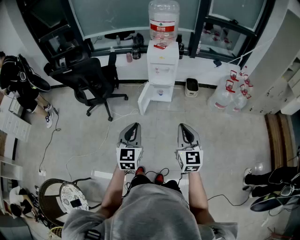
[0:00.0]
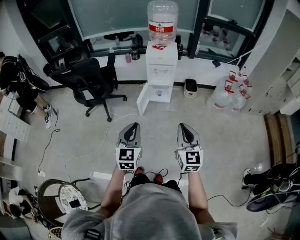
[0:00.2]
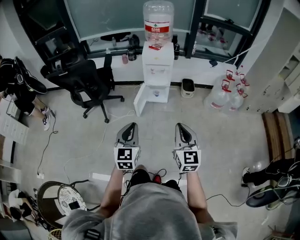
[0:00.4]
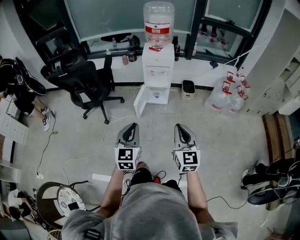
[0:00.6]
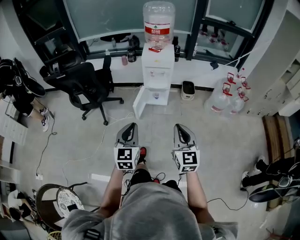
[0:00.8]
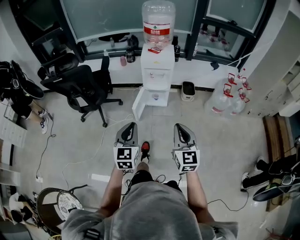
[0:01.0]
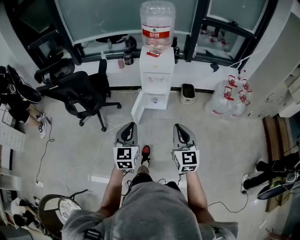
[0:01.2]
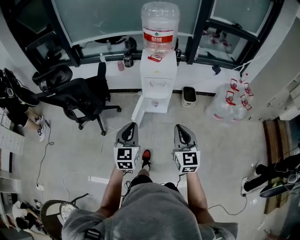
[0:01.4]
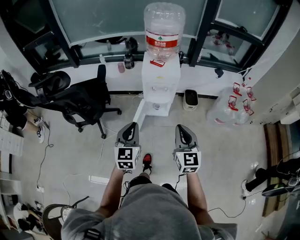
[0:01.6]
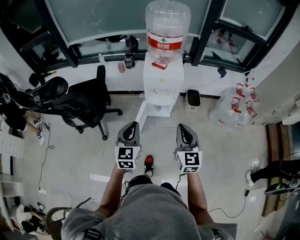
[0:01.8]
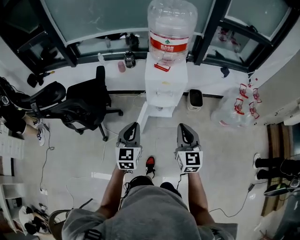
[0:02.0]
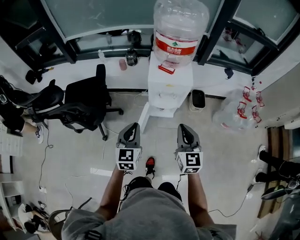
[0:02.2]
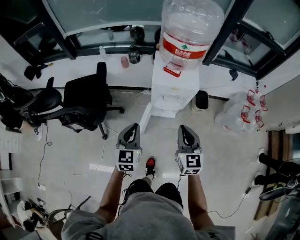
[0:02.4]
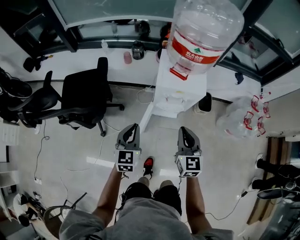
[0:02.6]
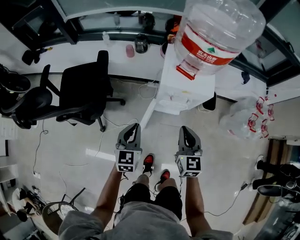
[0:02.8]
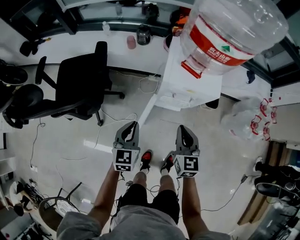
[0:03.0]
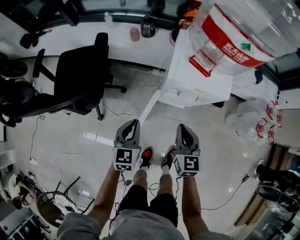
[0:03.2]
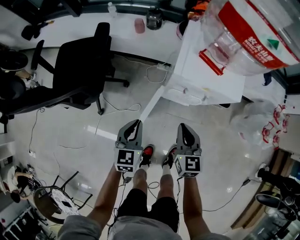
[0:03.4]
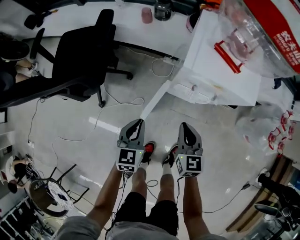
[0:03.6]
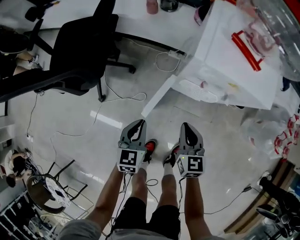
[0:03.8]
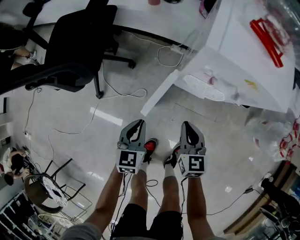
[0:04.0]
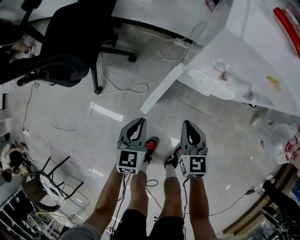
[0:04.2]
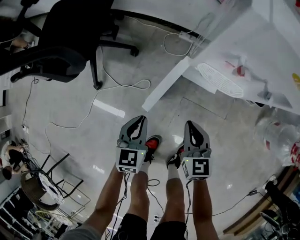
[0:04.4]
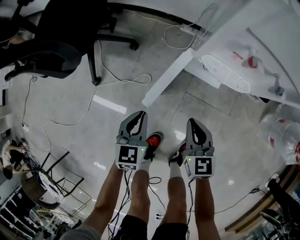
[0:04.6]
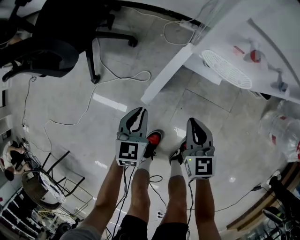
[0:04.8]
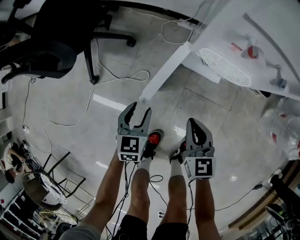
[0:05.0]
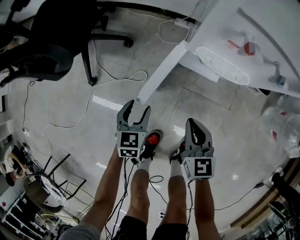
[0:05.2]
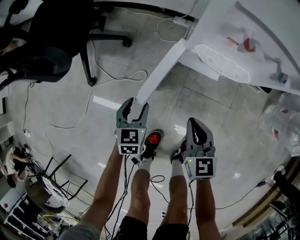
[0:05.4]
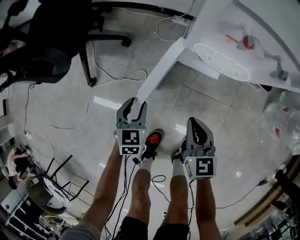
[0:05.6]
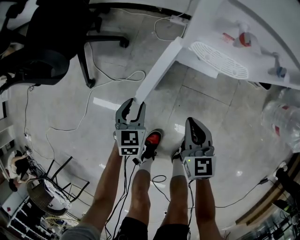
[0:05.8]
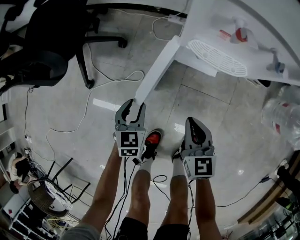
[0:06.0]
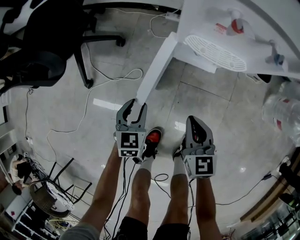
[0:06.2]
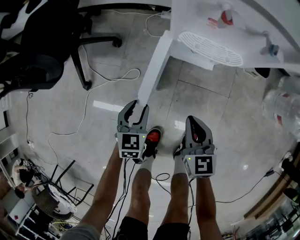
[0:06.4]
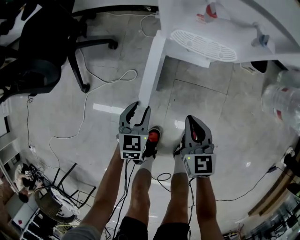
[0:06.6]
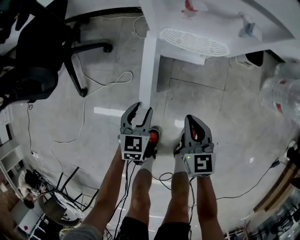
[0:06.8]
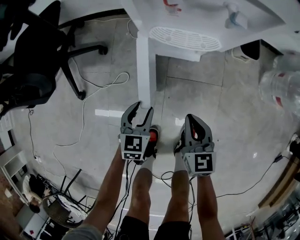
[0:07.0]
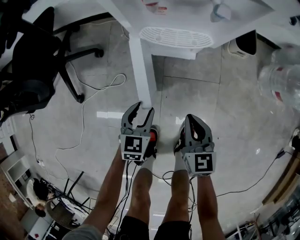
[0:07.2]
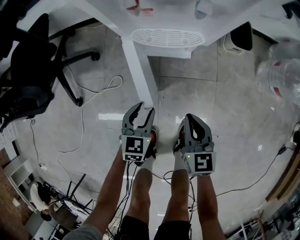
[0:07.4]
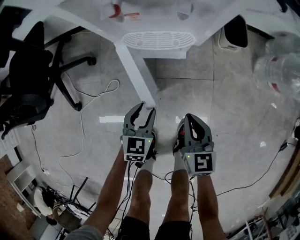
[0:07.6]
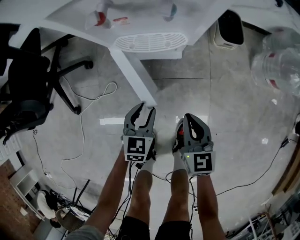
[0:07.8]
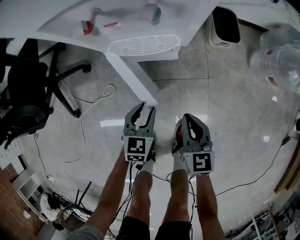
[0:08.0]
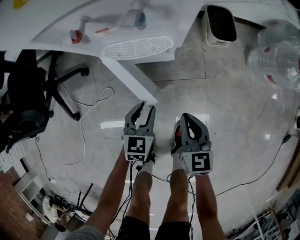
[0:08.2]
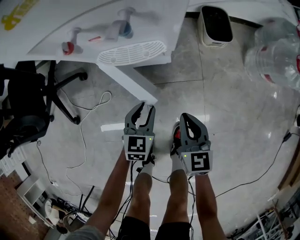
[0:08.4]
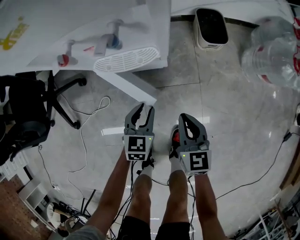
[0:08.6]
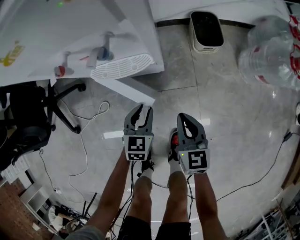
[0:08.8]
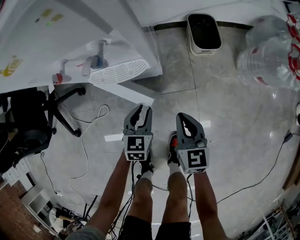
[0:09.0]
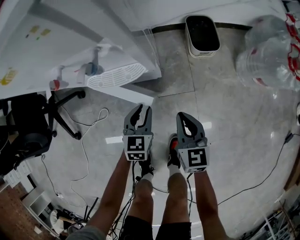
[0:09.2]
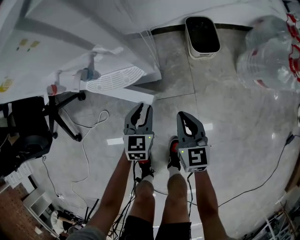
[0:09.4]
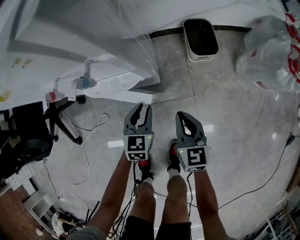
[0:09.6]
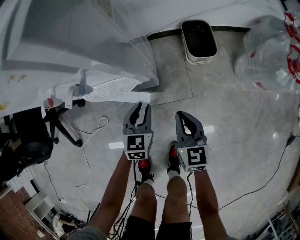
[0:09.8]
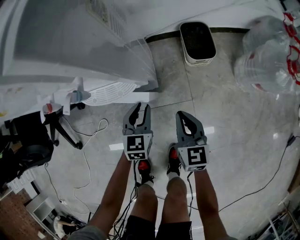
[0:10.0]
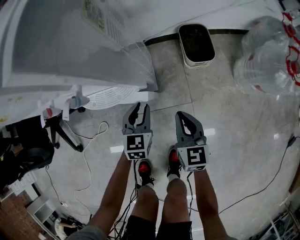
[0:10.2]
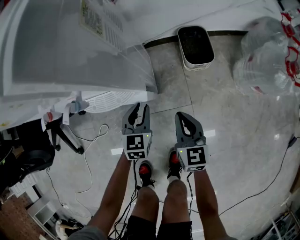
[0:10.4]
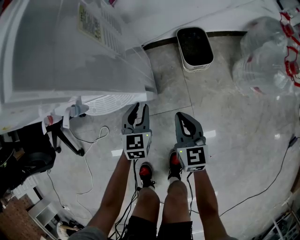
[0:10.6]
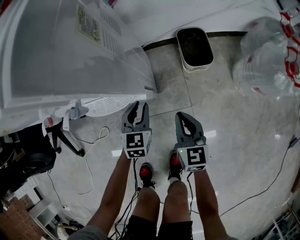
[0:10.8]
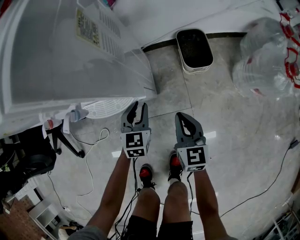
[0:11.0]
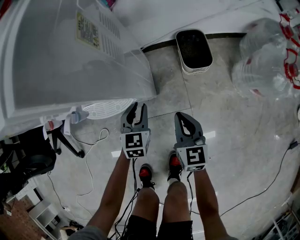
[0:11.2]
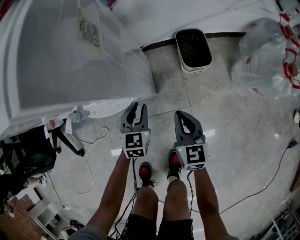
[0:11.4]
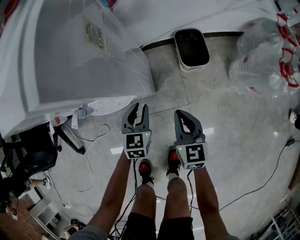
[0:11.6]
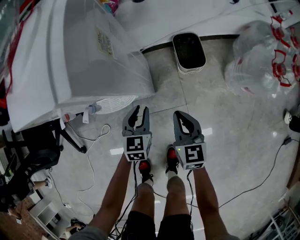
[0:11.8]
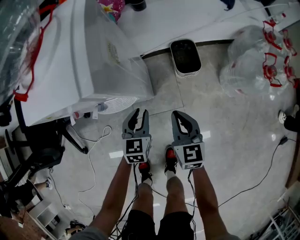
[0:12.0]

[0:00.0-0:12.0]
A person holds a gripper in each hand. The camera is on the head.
0:00.0 to 0:01.6: The grippers both shift forward by roughly 30 cm.
0:01.6 to 0:03.0: Both grippers travel together forward and downward, roughly 30 cm.
0:03.0 to 0:04.4: The grippers both shift downward by some 35 cm. The right gripper turns by some 20 degrees.
0:04.4 to 0:06.0: The right gripper ends up roughly 5 cm from where it was. Meanwhile the left gripper travels downward by approximately 10 cm, and opens.
0:06.0 to 0:07.6: The two grippers go approximately 15 cm to the right. The left gripper rotates some 20 degrees.
0:07.6 to 0:09.0: The grippers both shift to the right and forward by about 10 cm.
0:09.0 to 0:10.4: Both grippers move forward, approximately 10 cm.
0:10.4 to 0:12.0: The grippers both shift upward by roughly 10 cm.

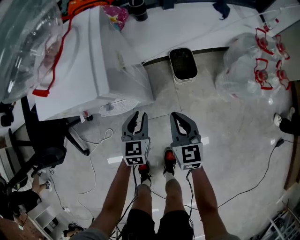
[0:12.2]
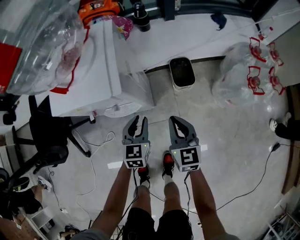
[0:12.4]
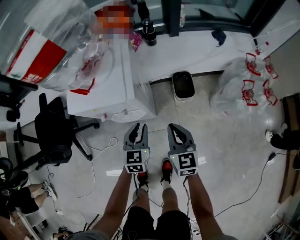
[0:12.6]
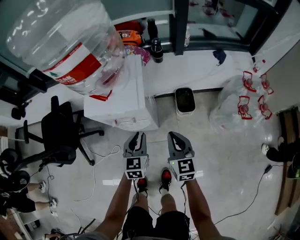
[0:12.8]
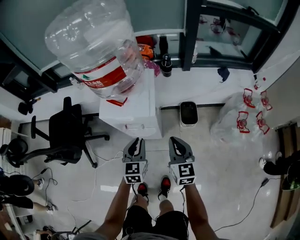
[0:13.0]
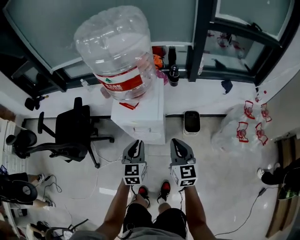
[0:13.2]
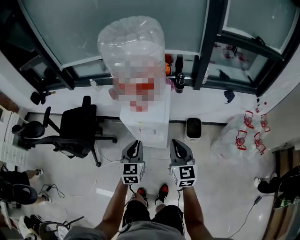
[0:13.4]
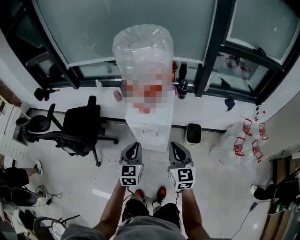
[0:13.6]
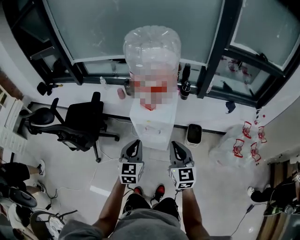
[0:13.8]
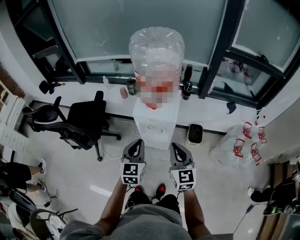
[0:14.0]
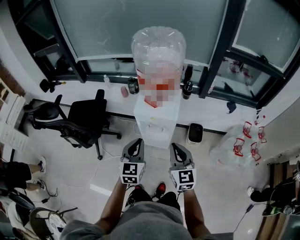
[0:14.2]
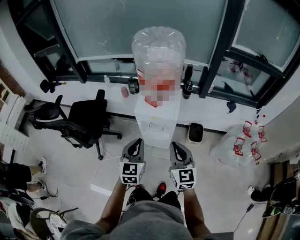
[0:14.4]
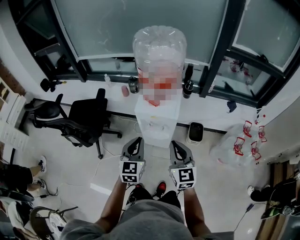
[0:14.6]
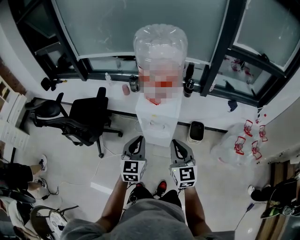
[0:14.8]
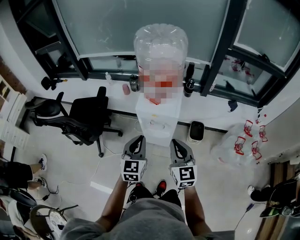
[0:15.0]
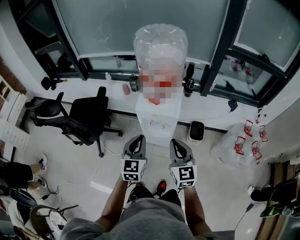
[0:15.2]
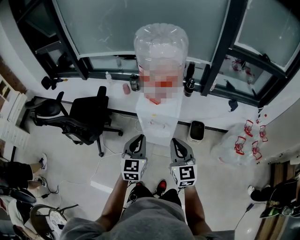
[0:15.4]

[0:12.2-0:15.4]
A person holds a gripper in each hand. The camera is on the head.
0:12.2 to 0:13.8: Both grippers move upward, some 40 cm. The left gripper turns by about 30 degrees. The right gripper changes its angle by roughly 20 degrees.
0:13.8 to 0:15.4: There are only small adjustments of the grippers.

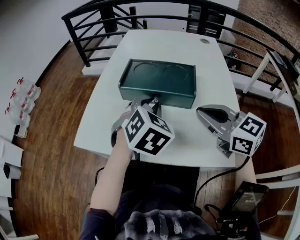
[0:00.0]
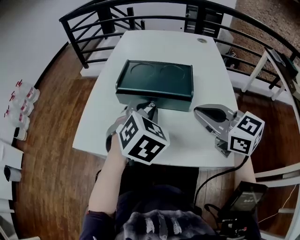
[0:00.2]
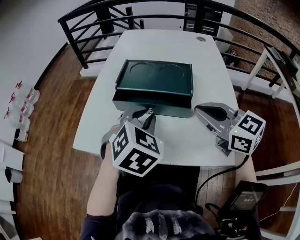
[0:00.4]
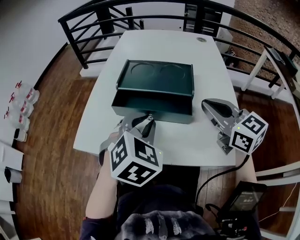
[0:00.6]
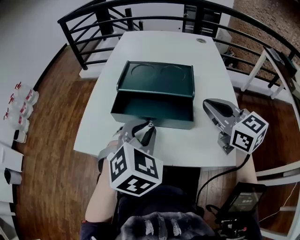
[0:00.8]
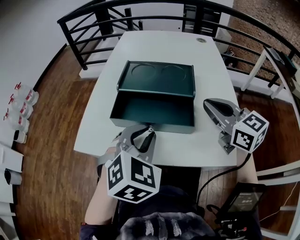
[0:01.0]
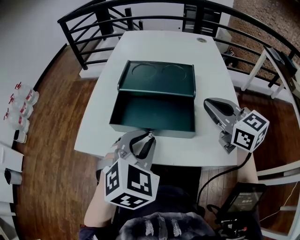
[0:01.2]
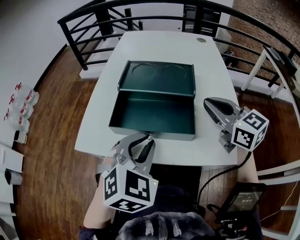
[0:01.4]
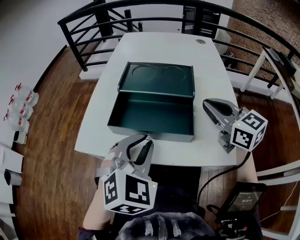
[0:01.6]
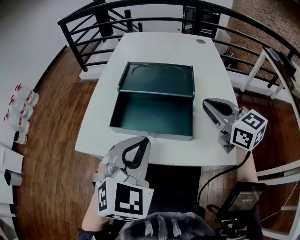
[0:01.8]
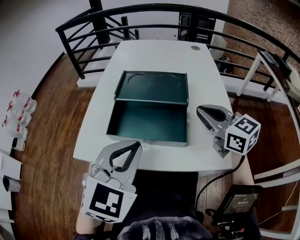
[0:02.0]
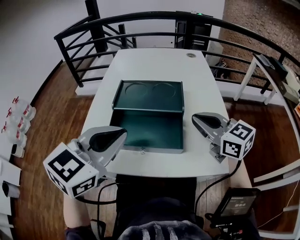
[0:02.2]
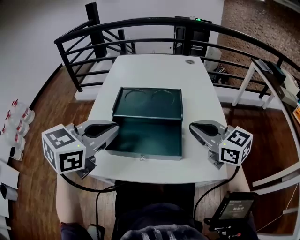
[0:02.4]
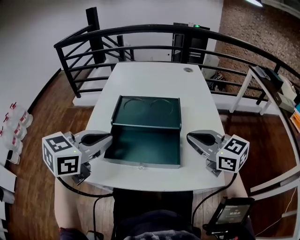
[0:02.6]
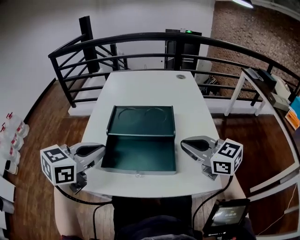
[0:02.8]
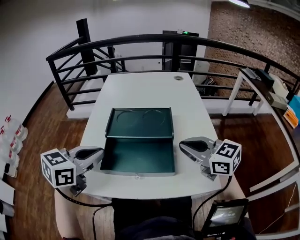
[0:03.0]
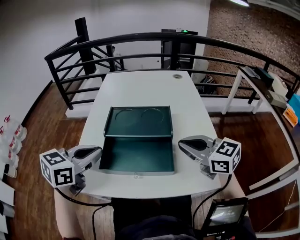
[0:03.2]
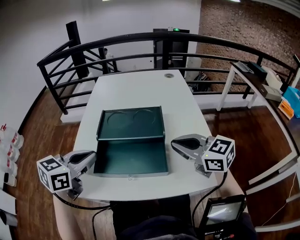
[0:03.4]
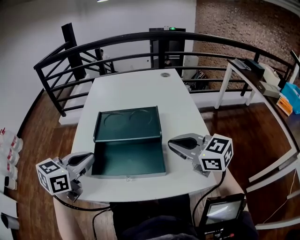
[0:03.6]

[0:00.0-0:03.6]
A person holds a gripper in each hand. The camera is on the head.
0:00.0 to 0:01.8: The left gripper is displaced backward by roughly 15 cm. The right gripper shifts by roughly 5 cm.
0:01.8 to 0:03.6: The left gripper goes roughly 15 cm to the left and forward, and changes its angle by roughly 40 degrees.

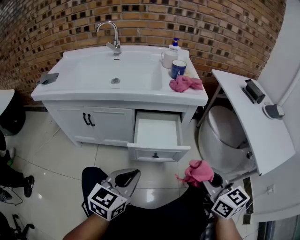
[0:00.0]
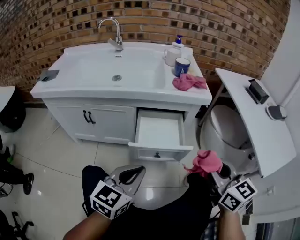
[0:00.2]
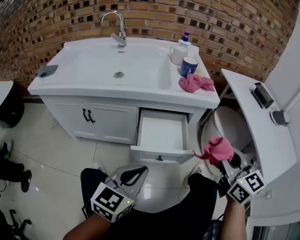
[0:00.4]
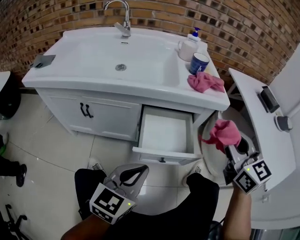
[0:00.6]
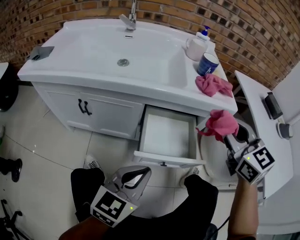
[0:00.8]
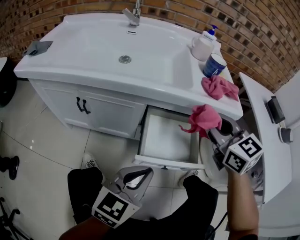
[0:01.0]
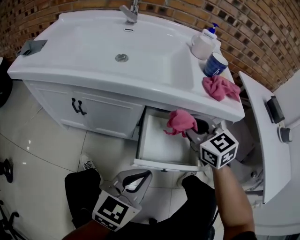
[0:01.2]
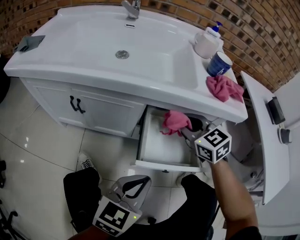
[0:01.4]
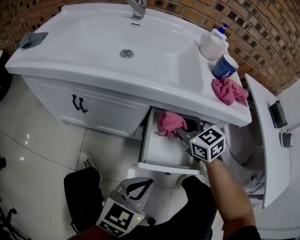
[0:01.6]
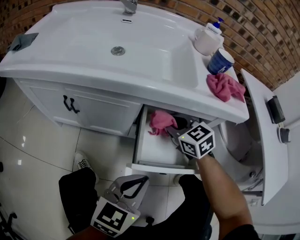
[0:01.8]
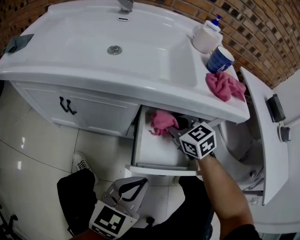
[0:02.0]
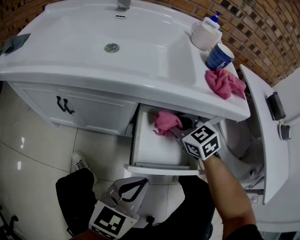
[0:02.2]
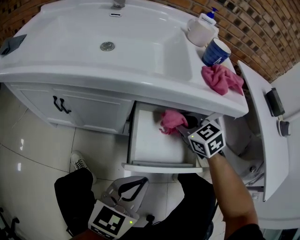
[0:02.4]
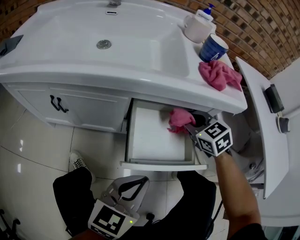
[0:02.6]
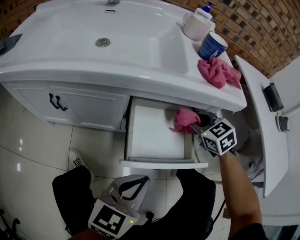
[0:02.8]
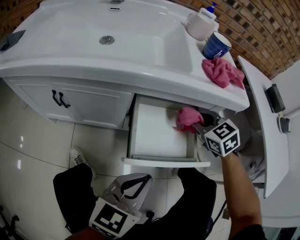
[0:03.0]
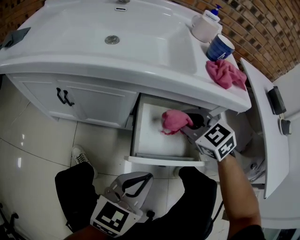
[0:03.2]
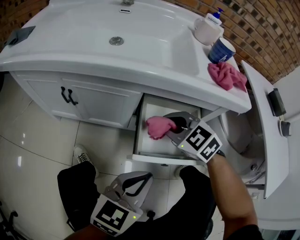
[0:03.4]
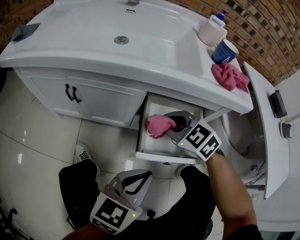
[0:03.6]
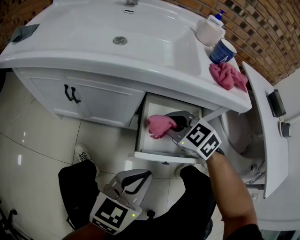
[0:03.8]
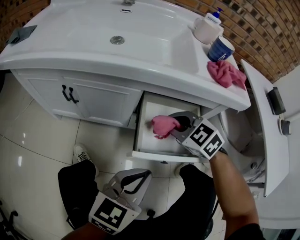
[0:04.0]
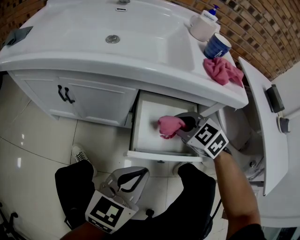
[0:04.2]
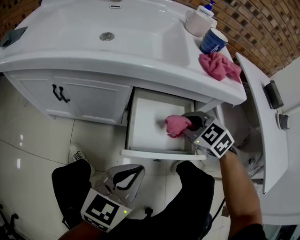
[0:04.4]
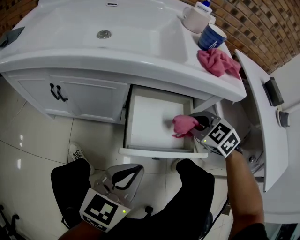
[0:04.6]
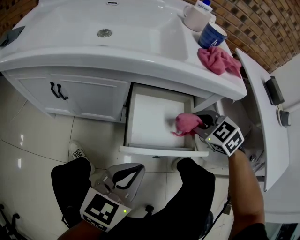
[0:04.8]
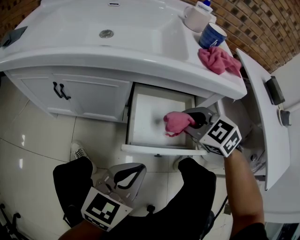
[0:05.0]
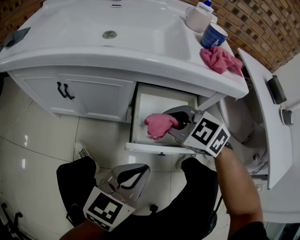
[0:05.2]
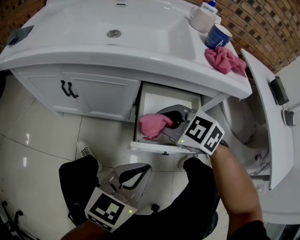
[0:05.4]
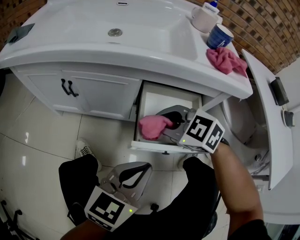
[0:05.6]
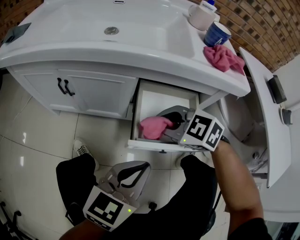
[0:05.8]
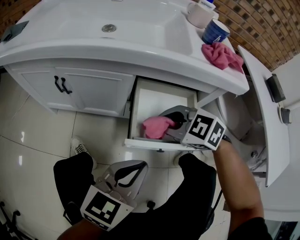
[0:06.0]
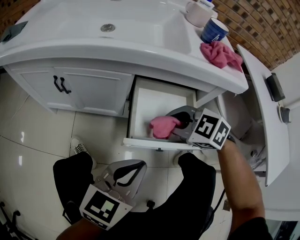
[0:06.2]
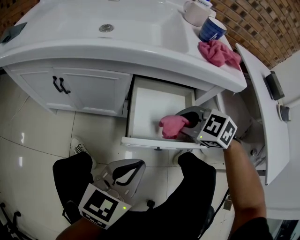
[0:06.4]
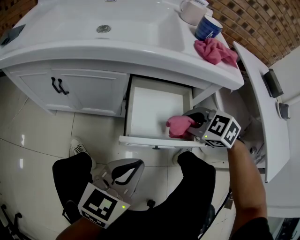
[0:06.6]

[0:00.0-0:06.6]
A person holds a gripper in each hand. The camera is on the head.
0:00.0 to 0:01.6: The left gripper heads forward and downward, covering roughly 10 cm. The right gripper heads forward, to the left and downward, covering approximately 40 cm, and turns by some 30 degrees.
0:01.6 to 0:03.2: The right gripper reaches roughly 15 cm to the right, then returns.
0:03.2 to 0:05.0: The right gripper swings left and right, about 15 cm each way, with 2 reversals.
0:05.0 to 0:06.6: The right gripper travels to the left and back again, some 10 cm each way.
